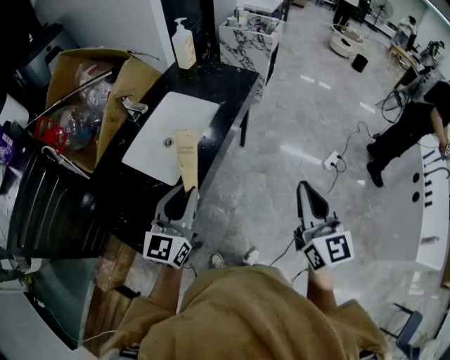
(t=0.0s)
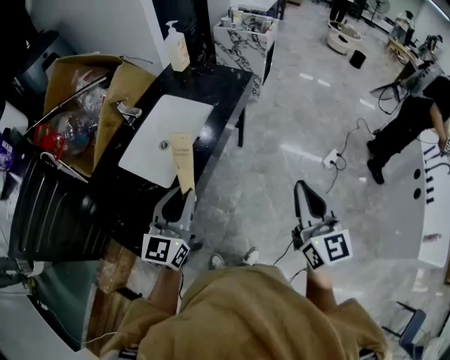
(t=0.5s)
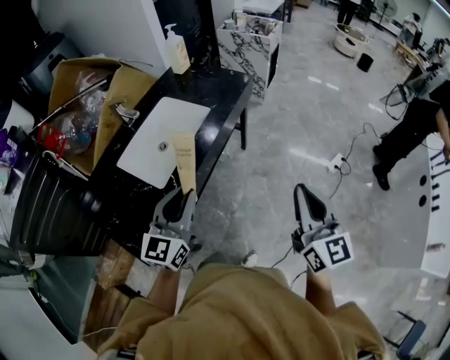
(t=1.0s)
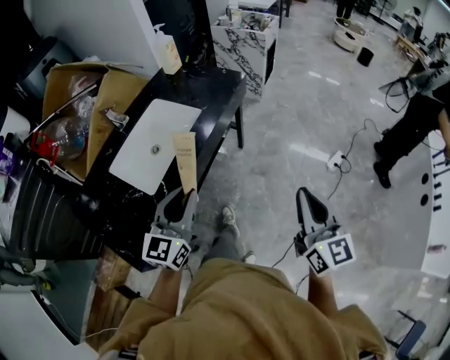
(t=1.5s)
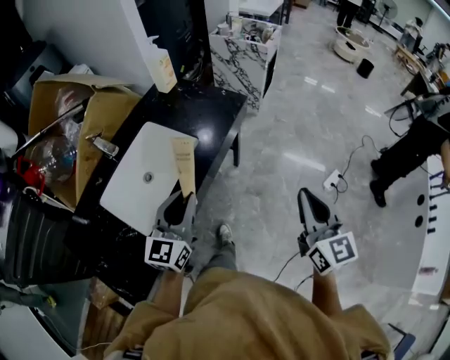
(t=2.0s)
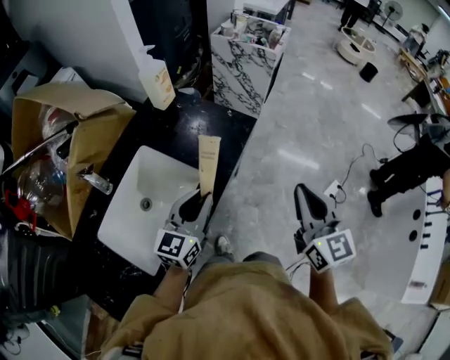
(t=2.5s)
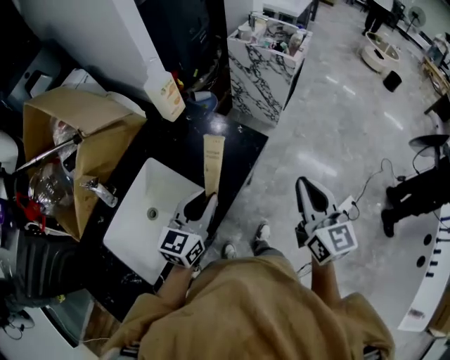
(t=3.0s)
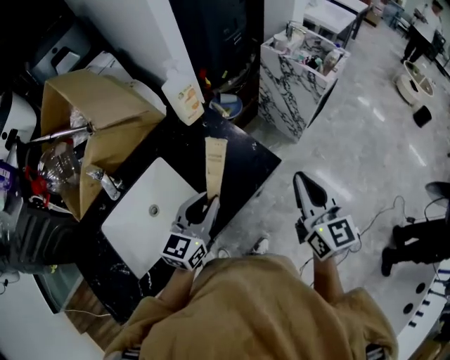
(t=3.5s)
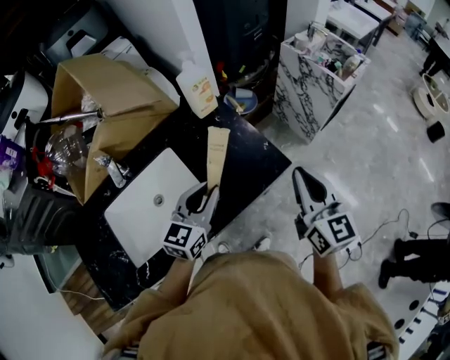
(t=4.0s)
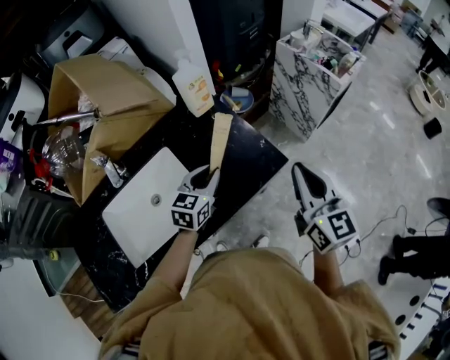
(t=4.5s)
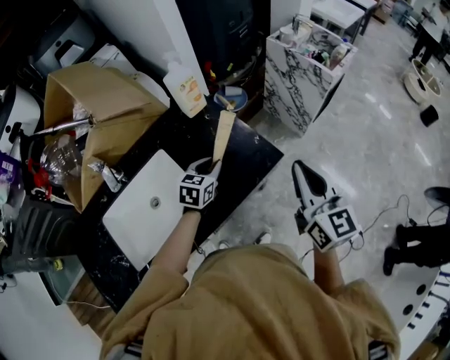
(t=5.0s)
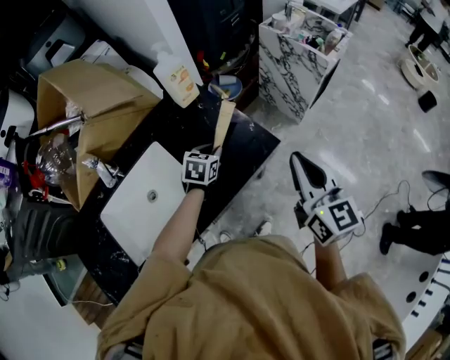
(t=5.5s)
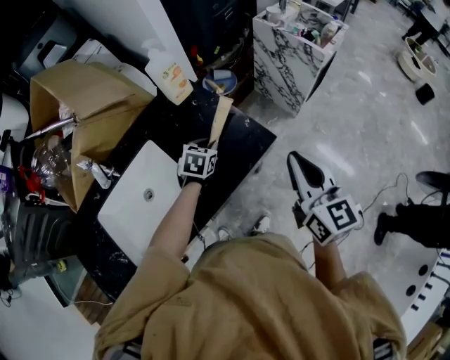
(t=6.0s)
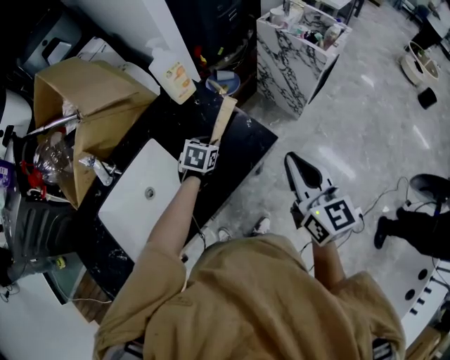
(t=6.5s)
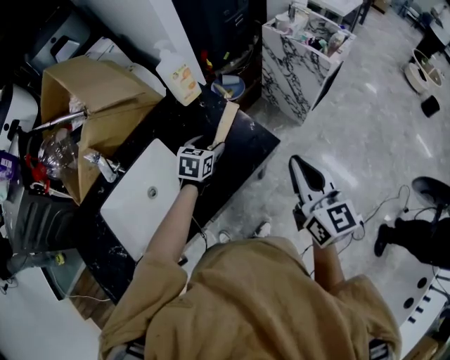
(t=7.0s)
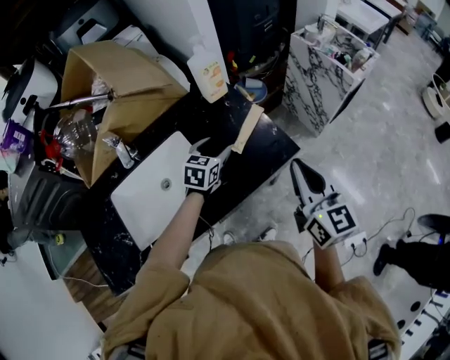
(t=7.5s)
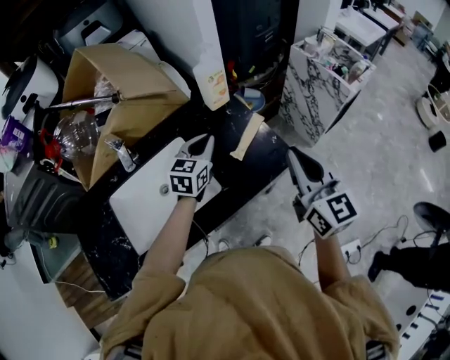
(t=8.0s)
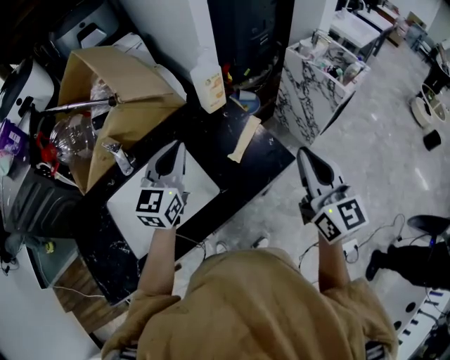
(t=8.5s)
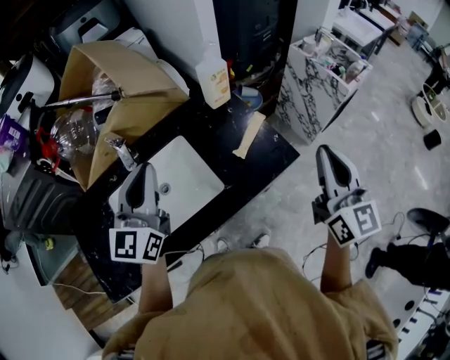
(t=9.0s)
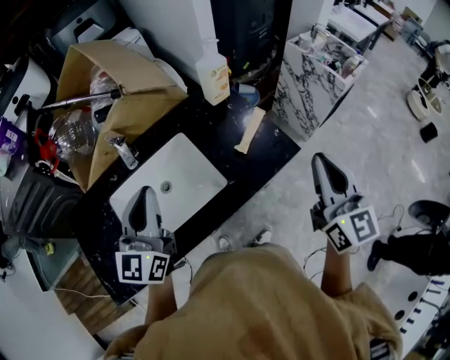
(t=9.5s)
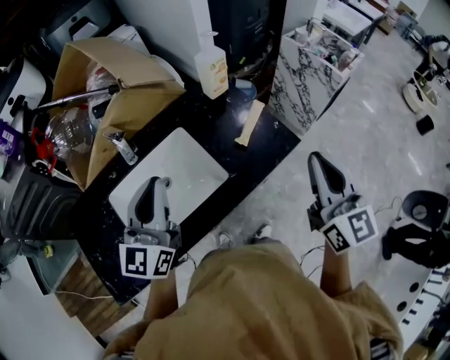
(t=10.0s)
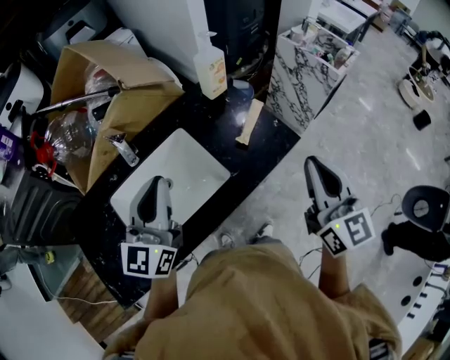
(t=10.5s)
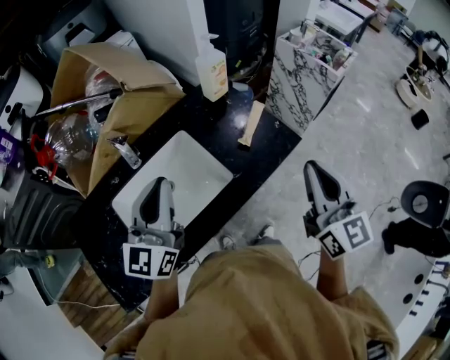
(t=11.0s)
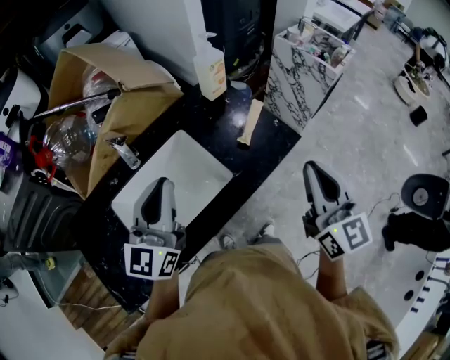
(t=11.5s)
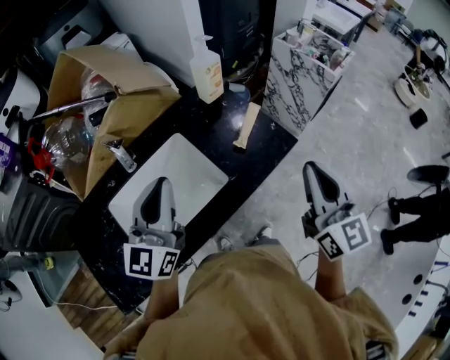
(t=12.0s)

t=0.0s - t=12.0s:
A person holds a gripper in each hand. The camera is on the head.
t=0.0s - t=2.0s: The two grippers go some 25 cm forward and to the right.
t=2.0s - t=4.0s: The grippers both shift forward by roughly 40 cm. The right gripper turns by roughly 30 degrees.
t=4.0s - t=6.0s: The left gripper moves downward and forward, about 20 cm, and tilts its fingers approximately 30 degrees downward.
t=6.0s - t=8.0s: The right gripper is displaced to the left and upward by about 10 cm. Meanwhile the left gripper moves upward and to the left, approximately 20 cm, rotates roughly 30 degrees, and opens and closes again.
t=8.0s - t=10.0s: The right gripper moves backward, some 10 cm. Meanwhile the left gripper heads backward, upward and to the left, covering approximately 30 cm, and turns by roughly 30 degrees.
t=10.0s - t=12.0s: The grippers move only a little.

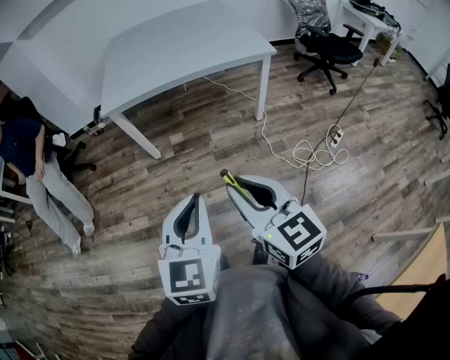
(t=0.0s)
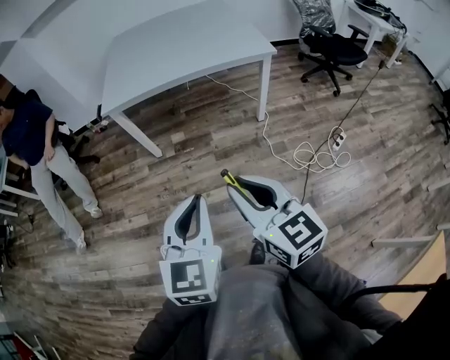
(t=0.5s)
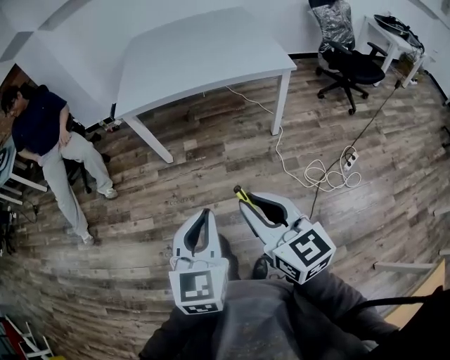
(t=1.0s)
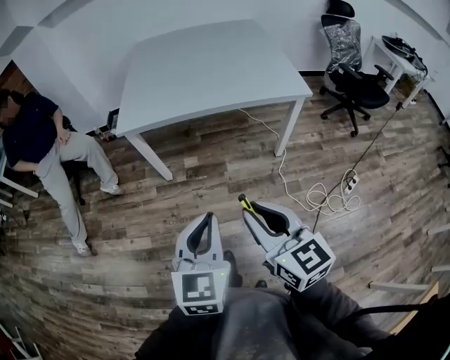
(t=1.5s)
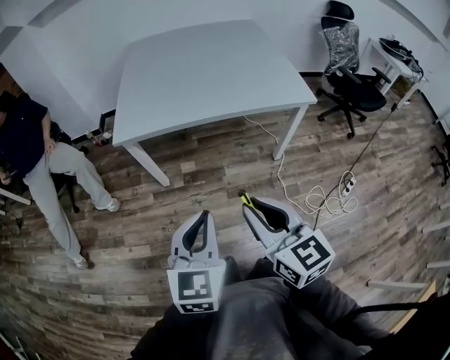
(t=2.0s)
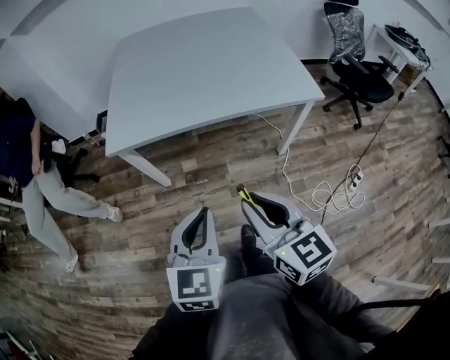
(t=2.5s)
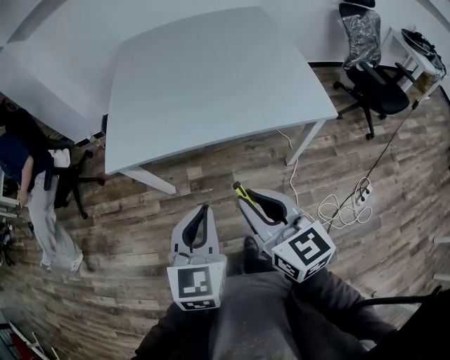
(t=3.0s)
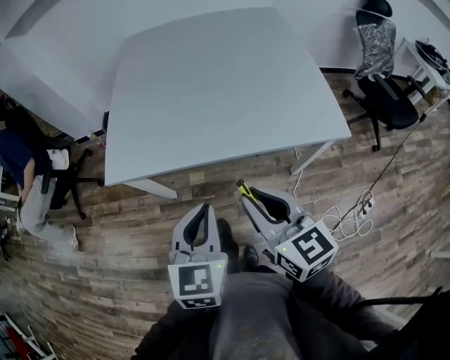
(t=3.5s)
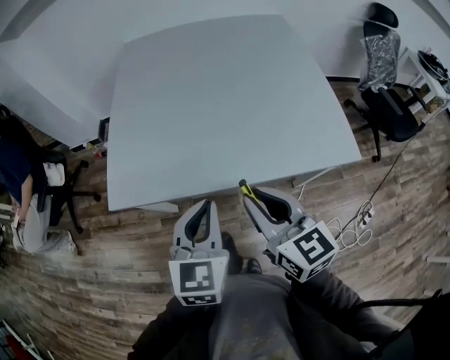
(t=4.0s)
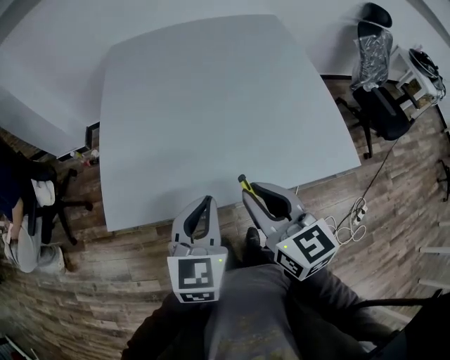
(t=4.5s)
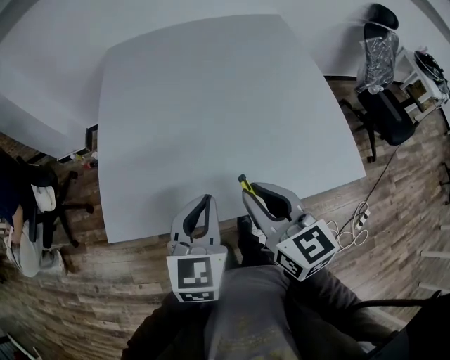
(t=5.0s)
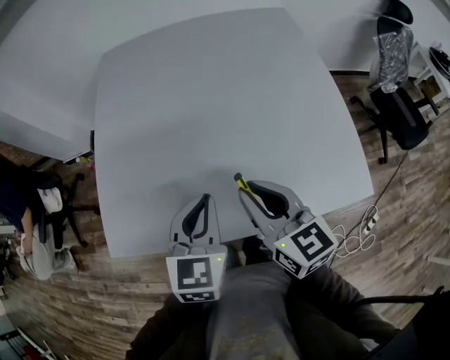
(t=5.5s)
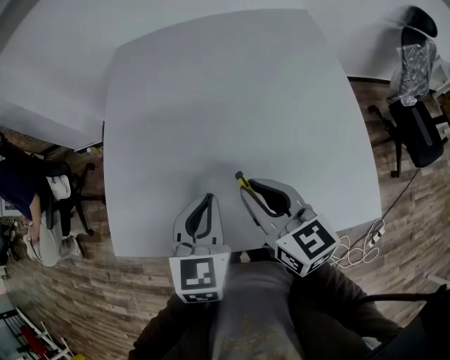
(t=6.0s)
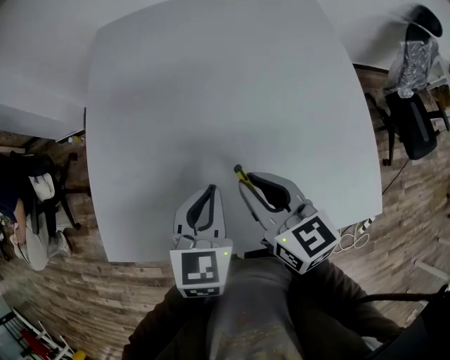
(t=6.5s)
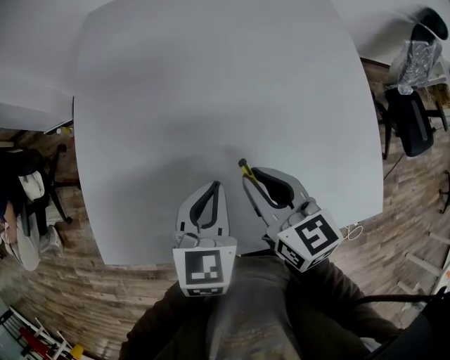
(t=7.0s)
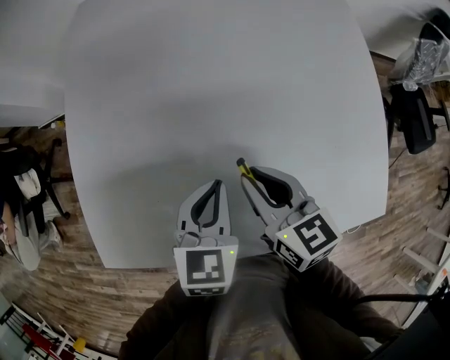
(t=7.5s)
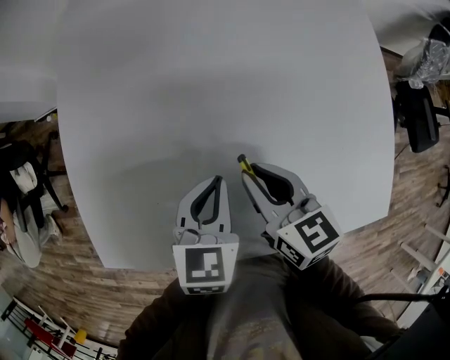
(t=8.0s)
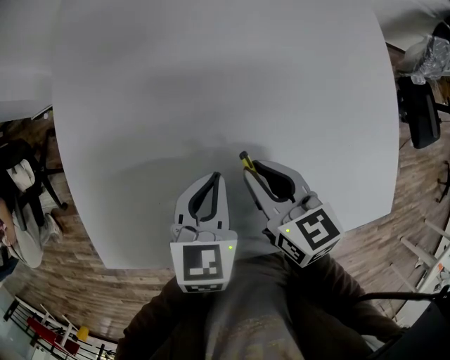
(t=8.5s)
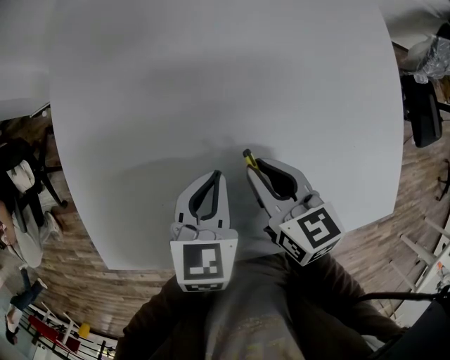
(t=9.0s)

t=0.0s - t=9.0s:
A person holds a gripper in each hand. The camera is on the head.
t=0.0s - t=2.0s: The two grippers go about 25 cm forward.
t=2.0s - t=4.5s: The two grippers travel together, forward, about 50 cm.
t=4.5s - t=7.0s: Both grippers move forward and downward, approximately 25 cm.
t=7.0s - t=9.0s: Both grippers move downward, some 10 cm.

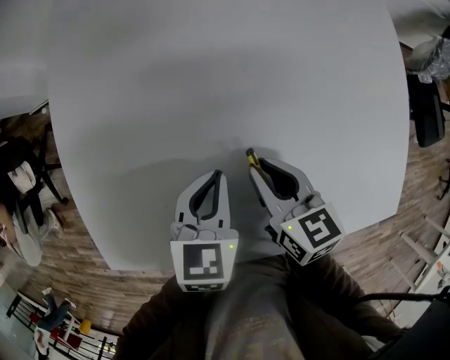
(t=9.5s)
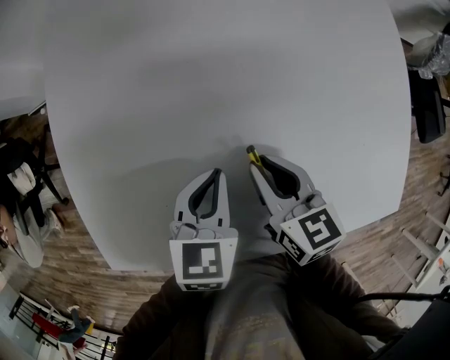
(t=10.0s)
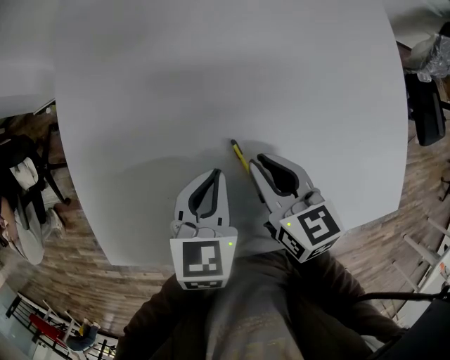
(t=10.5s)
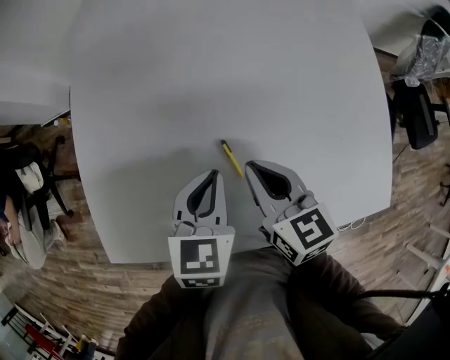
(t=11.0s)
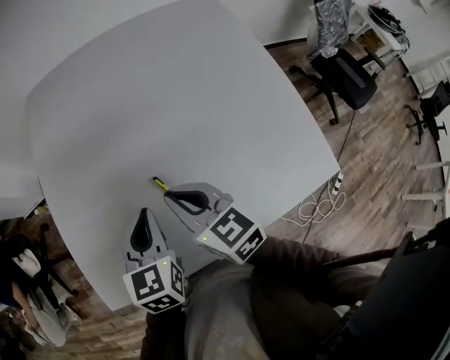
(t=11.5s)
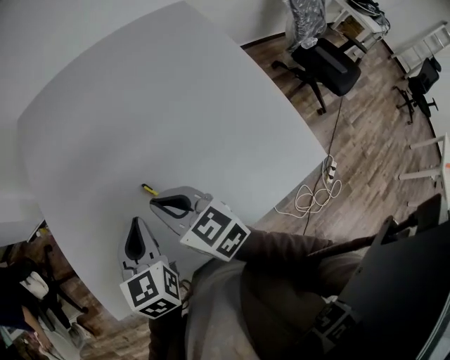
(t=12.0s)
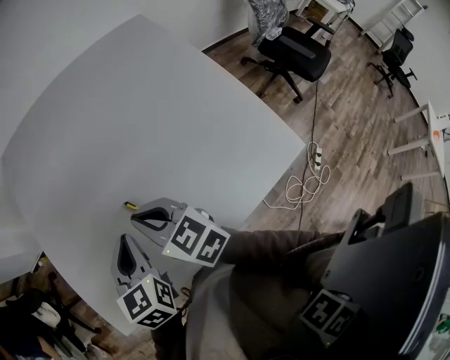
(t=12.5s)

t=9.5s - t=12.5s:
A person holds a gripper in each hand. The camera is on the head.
t=9.5s - t=11.0s: The two grippers go roughly 5 cm upward.
t=11.0s - t=12.5s: The grippers both shift upward by some 5 cm.

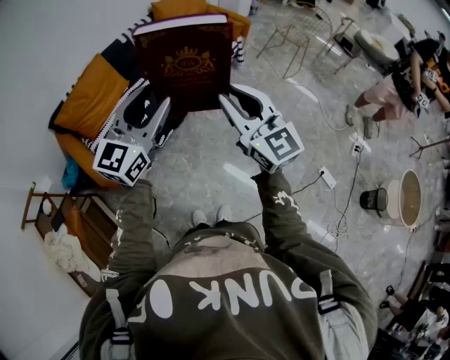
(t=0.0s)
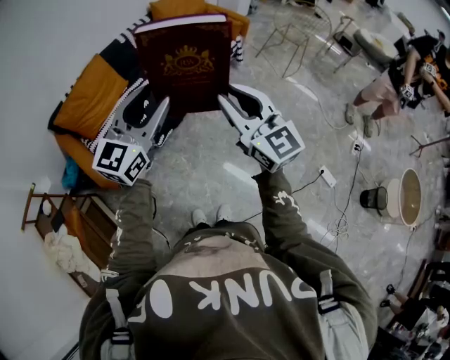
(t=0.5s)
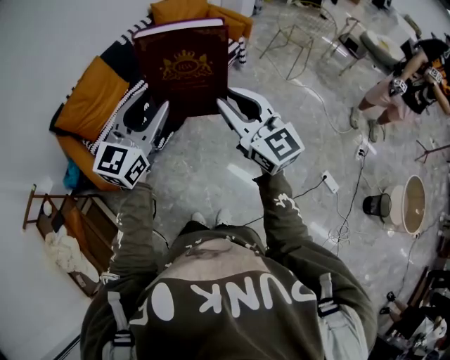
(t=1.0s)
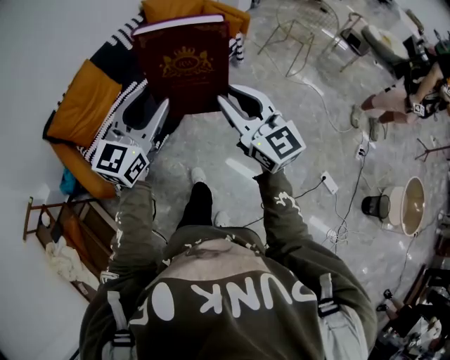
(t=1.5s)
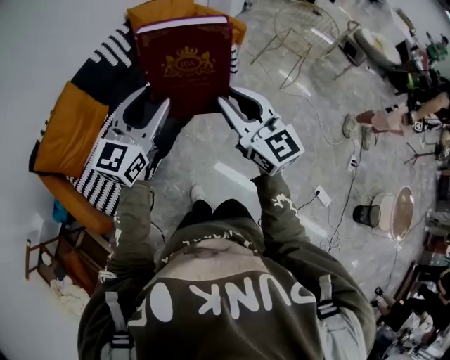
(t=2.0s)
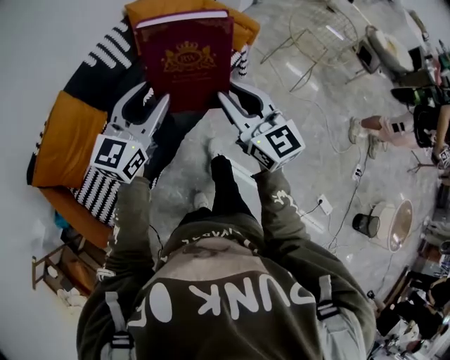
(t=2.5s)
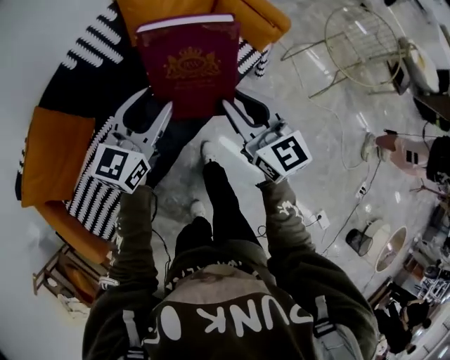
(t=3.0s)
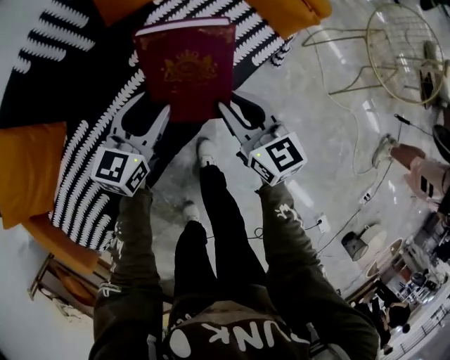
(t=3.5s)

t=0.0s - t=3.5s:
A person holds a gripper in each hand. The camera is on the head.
t=0.0s - t=2.0s: The grippers both shift forward by approximately 30 cm.
t=2.0s - t=3.5s: The pair of grippers is taken forward, some 40 cm. The two grippers go roughly 50 cm downward. The left gripper turns by some 30 degrees; the right gripper swivels approximately 30 degrees.
